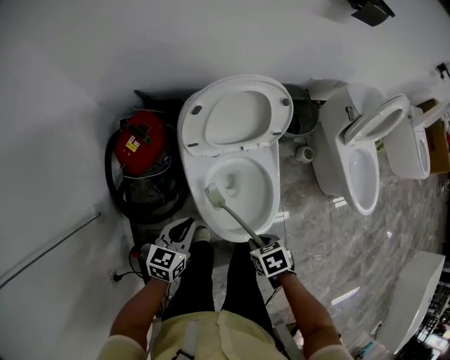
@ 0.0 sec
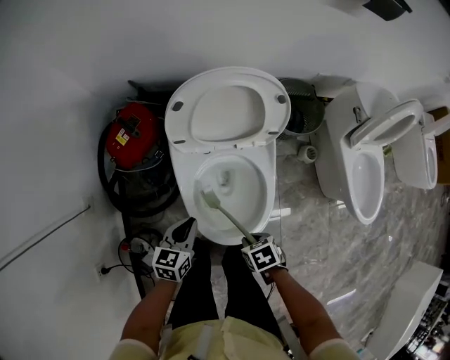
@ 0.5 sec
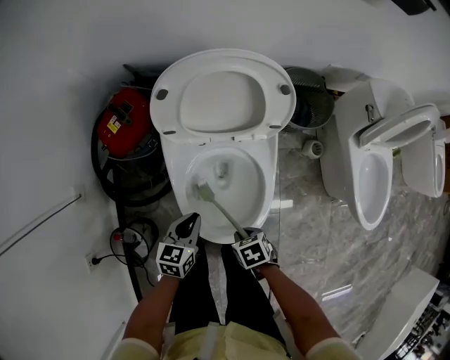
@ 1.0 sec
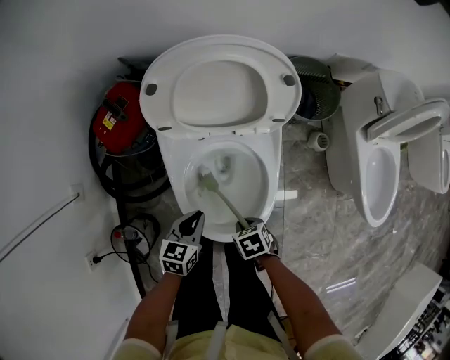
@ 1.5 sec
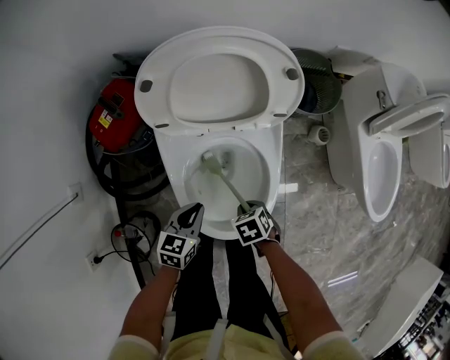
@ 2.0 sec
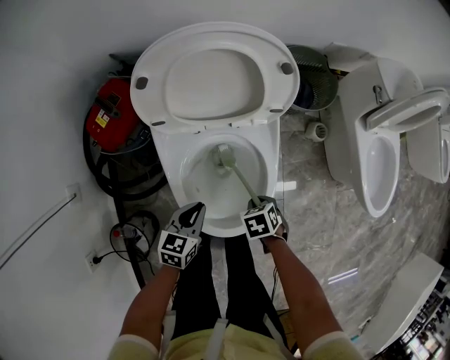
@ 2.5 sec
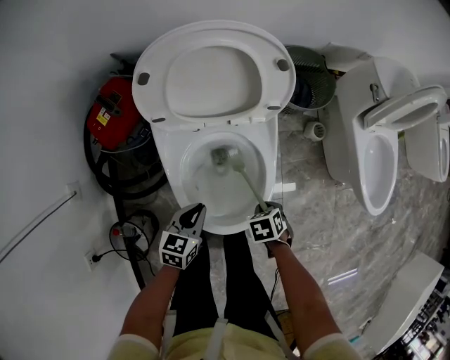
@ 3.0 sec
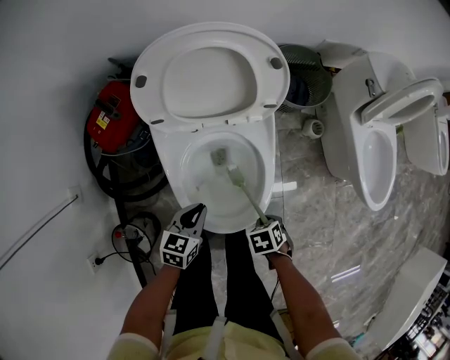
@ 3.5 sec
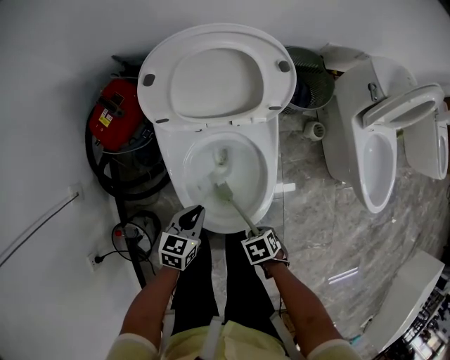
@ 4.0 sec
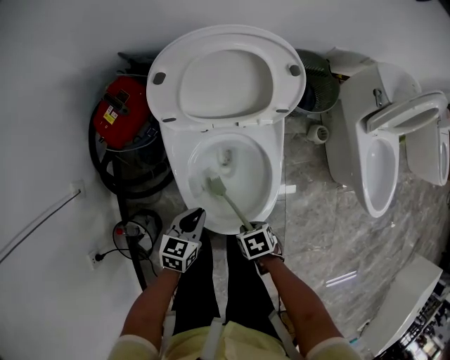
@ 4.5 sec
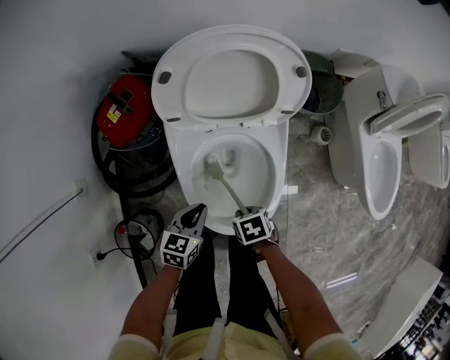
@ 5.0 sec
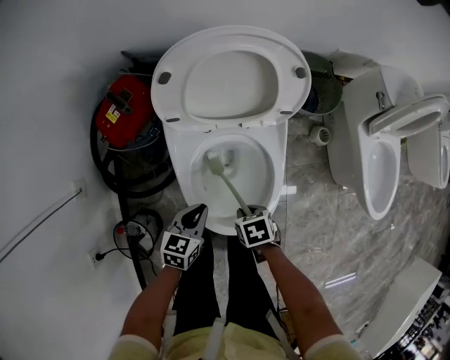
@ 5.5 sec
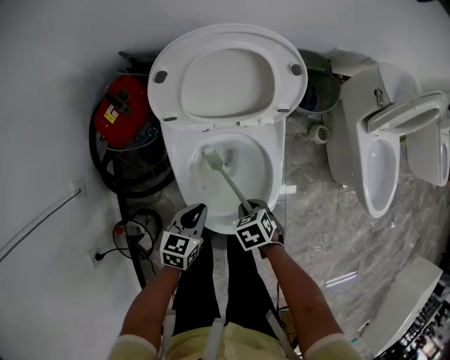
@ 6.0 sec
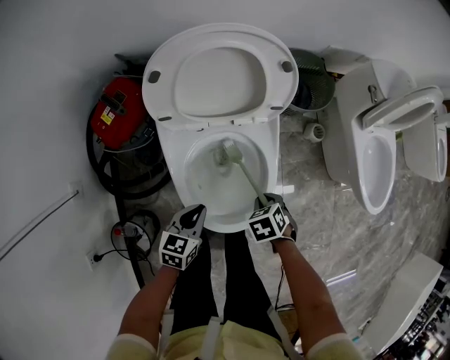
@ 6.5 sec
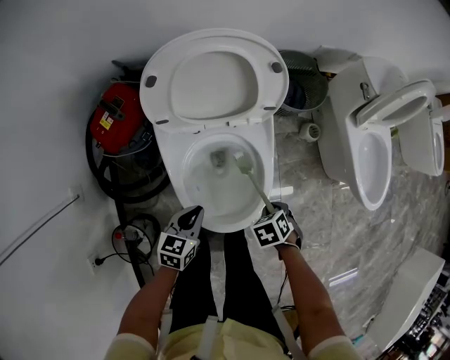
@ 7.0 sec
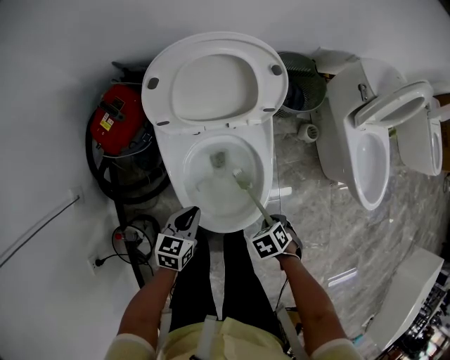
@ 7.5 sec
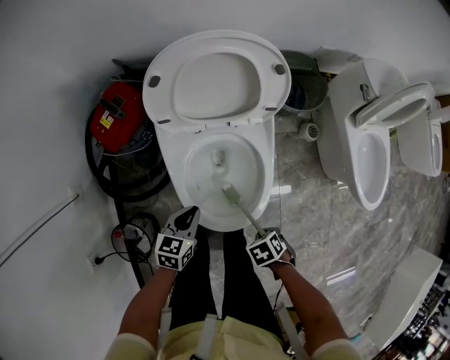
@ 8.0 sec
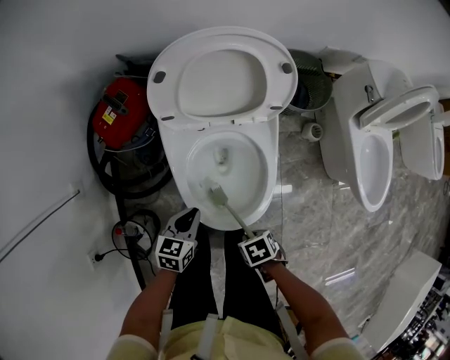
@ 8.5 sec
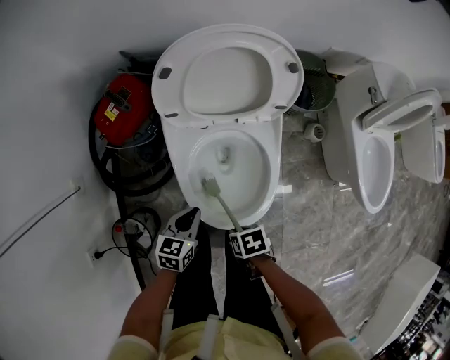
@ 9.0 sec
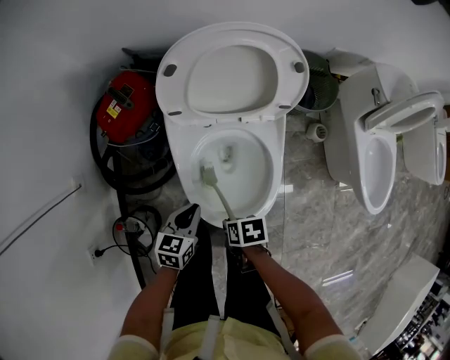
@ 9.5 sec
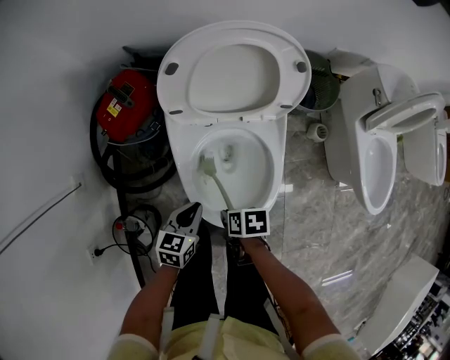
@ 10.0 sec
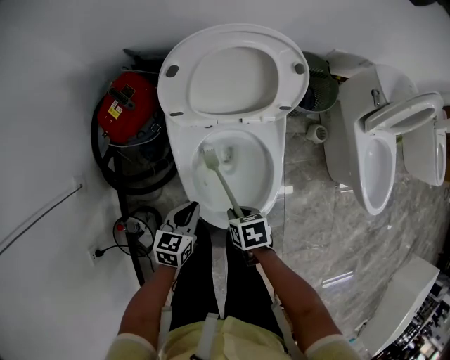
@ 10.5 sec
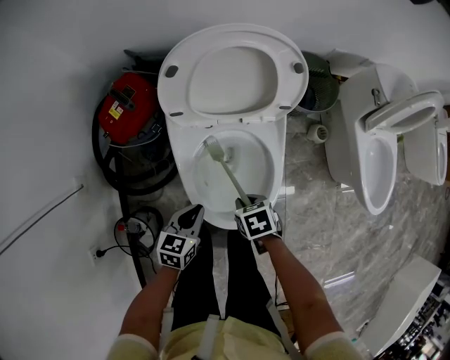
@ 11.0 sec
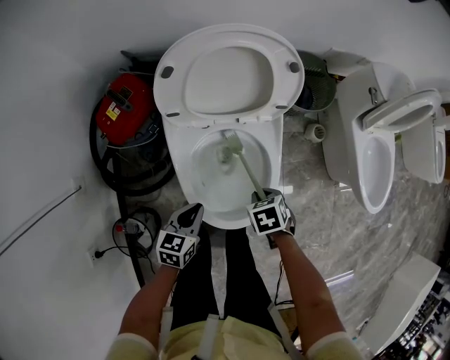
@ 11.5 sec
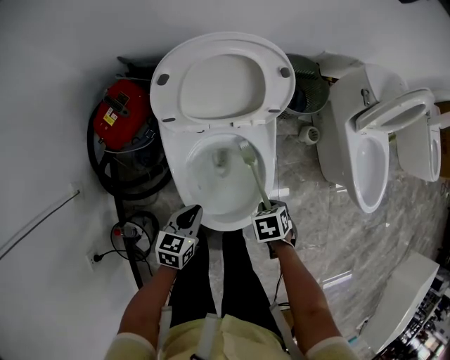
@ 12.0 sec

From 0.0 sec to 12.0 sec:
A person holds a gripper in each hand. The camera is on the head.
From 0.0 sec to 2.0 sec: The left gripper travels downward by about 15 cm.

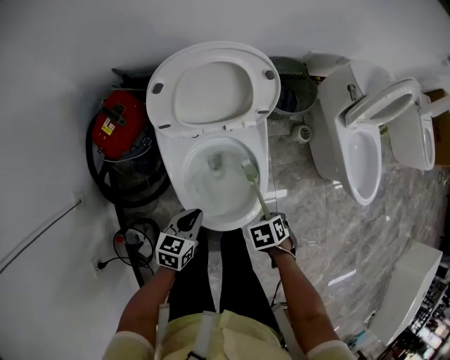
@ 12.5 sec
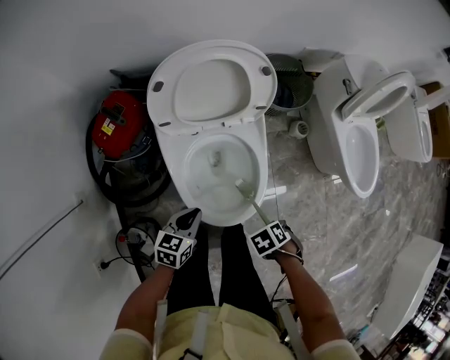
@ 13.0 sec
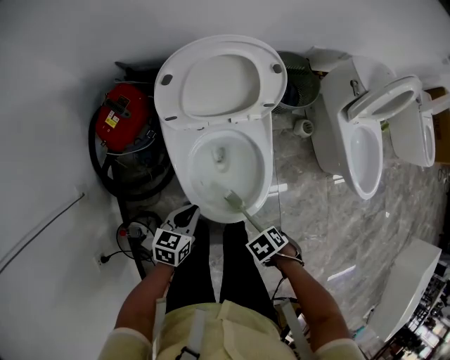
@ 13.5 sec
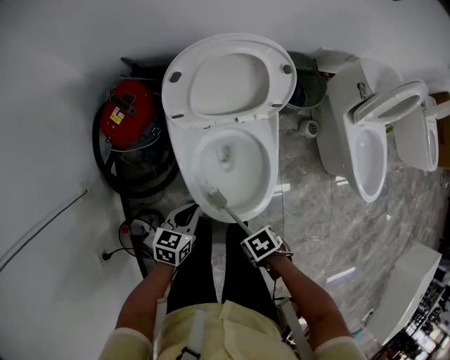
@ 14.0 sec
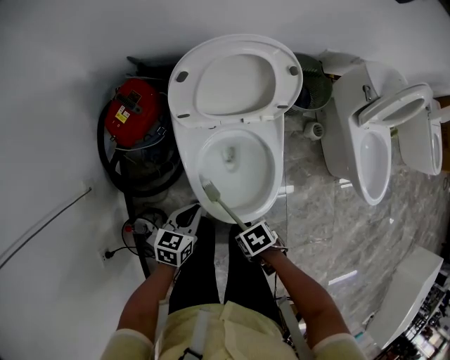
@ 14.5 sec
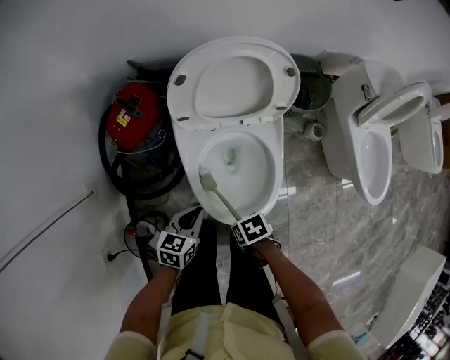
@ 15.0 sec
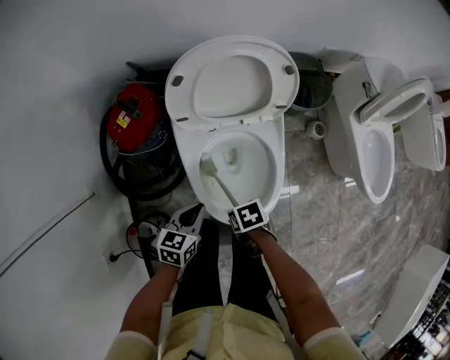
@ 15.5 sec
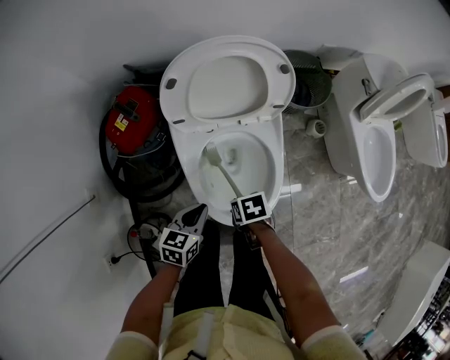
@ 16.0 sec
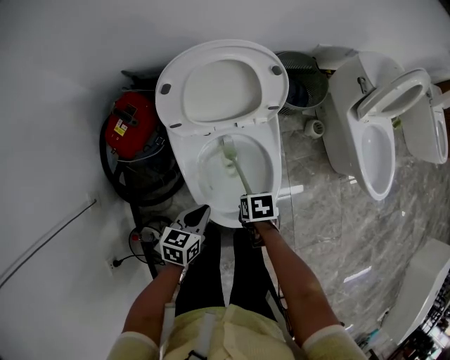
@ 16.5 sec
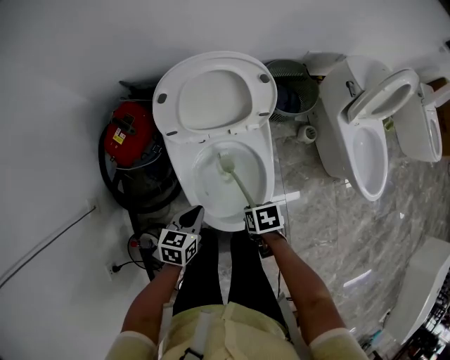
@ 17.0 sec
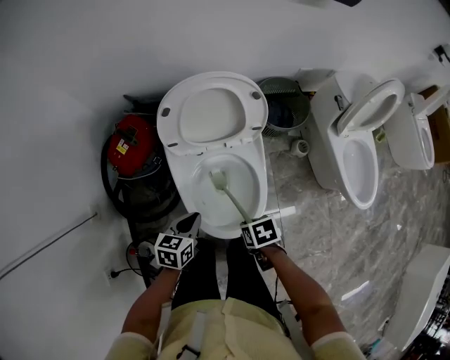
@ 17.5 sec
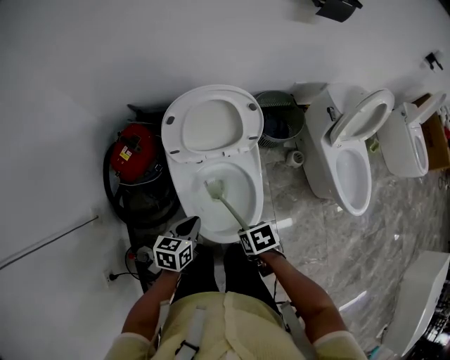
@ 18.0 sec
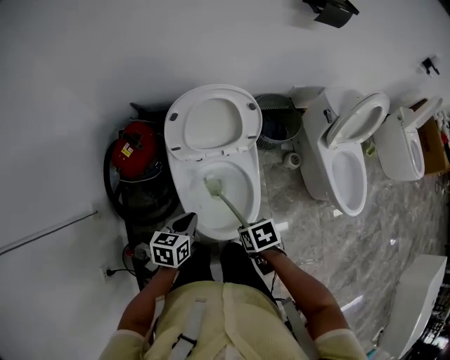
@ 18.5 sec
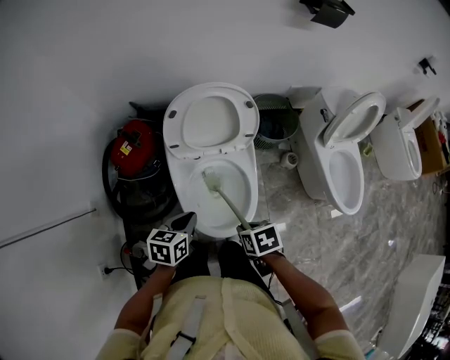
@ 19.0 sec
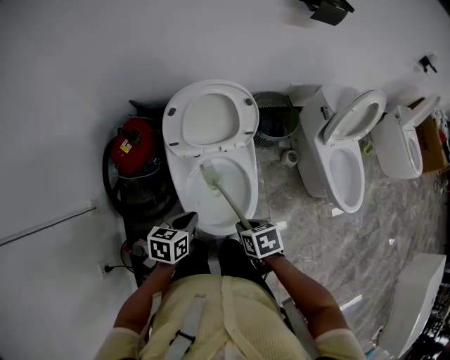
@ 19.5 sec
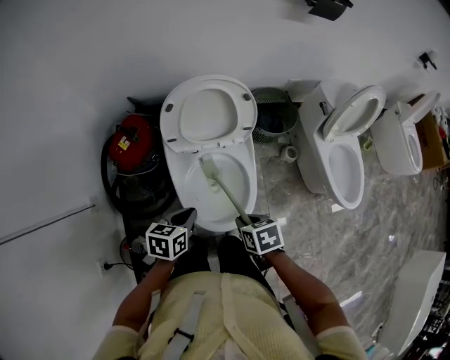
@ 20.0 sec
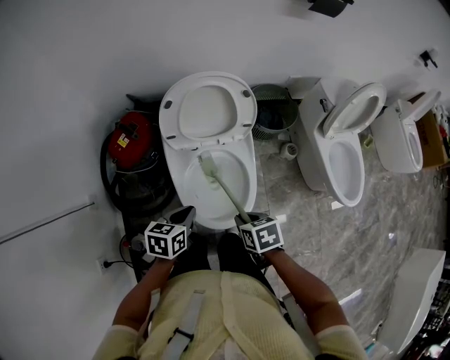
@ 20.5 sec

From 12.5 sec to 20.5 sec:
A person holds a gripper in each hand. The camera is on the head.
From 12.5 sec to 14.5 sec: The left gripper moves roughly 5 cm.
From 16.5 sec to 18.5 sec: The left gripper shifts roughly 10 cm upward.

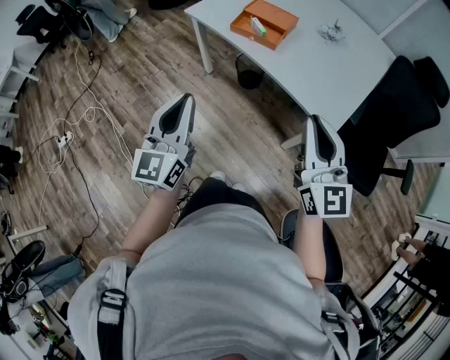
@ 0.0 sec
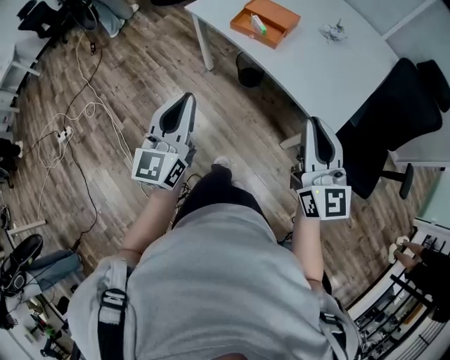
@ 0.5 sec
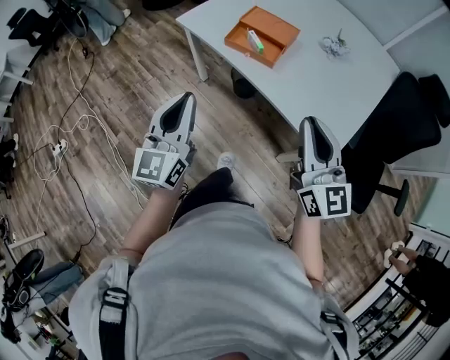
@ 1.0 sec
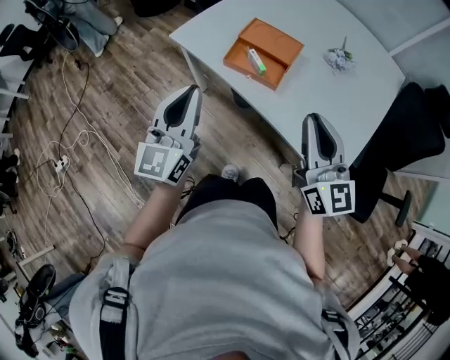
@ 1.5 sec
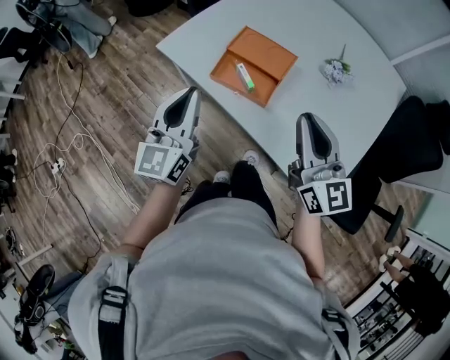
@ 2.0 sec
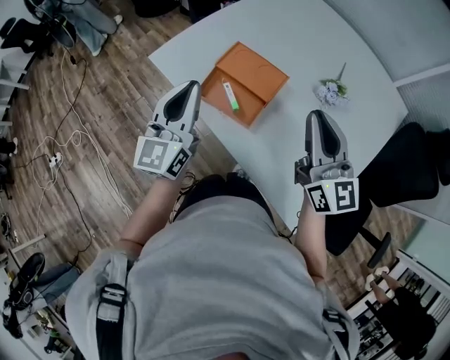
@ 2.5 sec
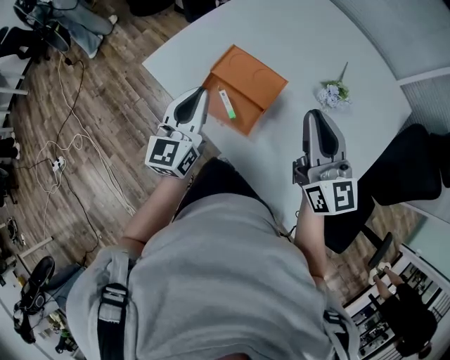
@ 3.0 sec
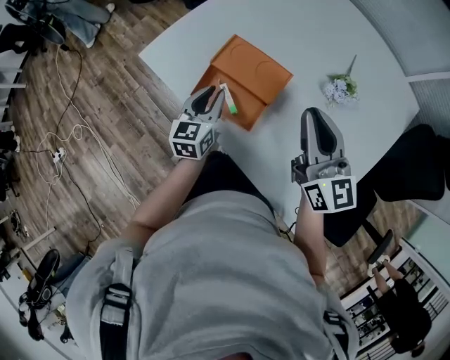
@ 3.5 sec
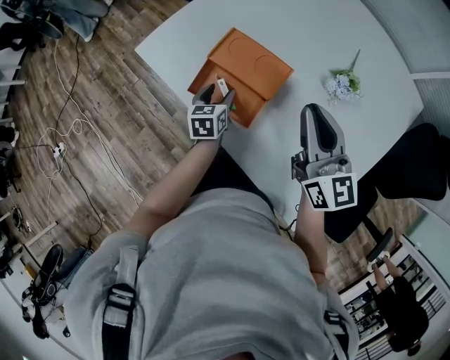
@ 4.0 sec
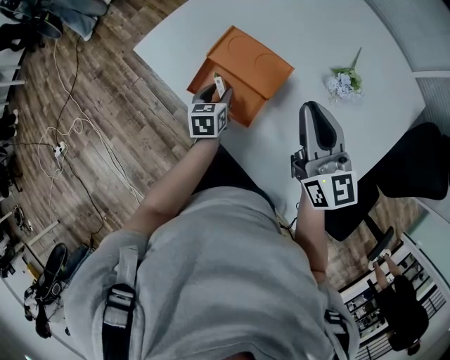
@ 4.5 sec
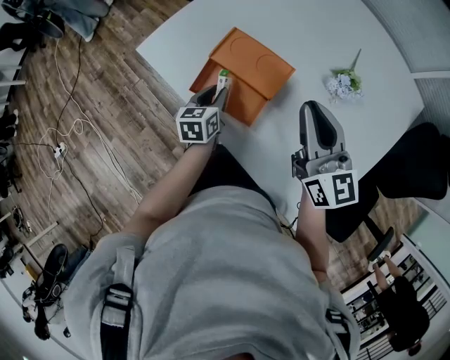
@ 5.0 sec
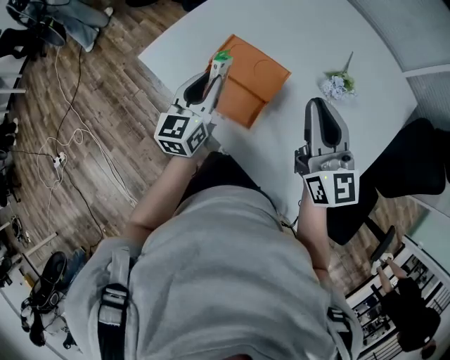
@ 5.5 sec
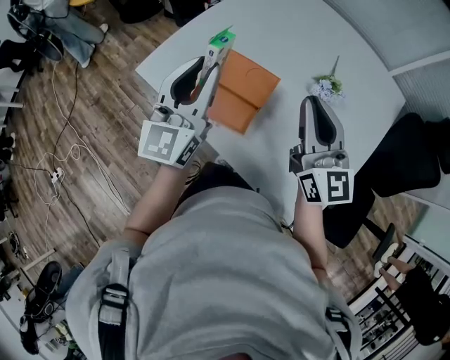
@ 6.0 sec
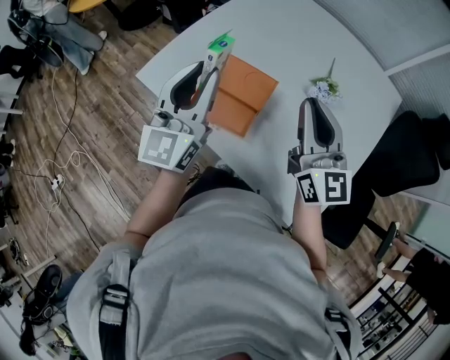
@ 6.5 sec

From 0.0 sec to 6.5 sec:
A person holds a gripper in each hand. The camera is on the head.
From 0.0 sec to 2.0 sec: The grippers both shift forward by roughly 40 cm.
From 2.0 sec to 4.5 sec: The right gripper heads forward and to the right, covering about 20 cm. The left gripper moves downward, forward and to the right, approximately 40 cm, tips its fingers downward by about 50 degrees, and opens its fingers.
From 4.5 sec to 6.5 sec: The right gripper moves upward and backward, approximately 10 cm; the left gripper shifts some 35 cm upward, tips its fingers upward by about 50 degrees, and closes up.

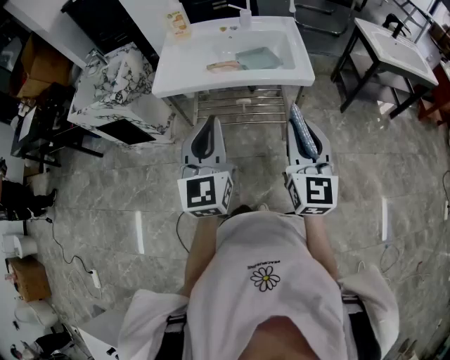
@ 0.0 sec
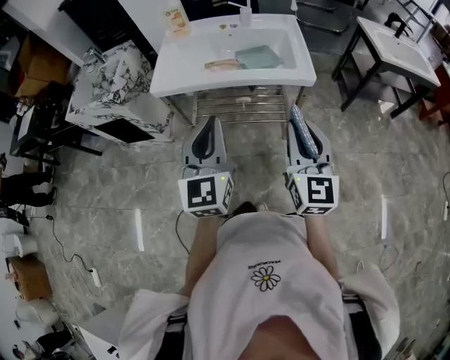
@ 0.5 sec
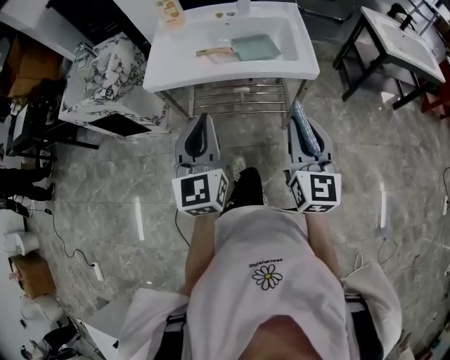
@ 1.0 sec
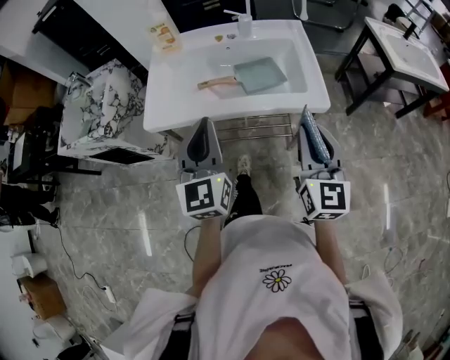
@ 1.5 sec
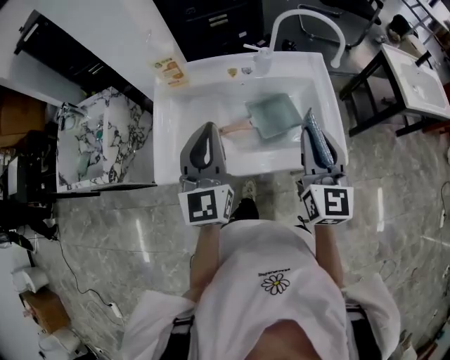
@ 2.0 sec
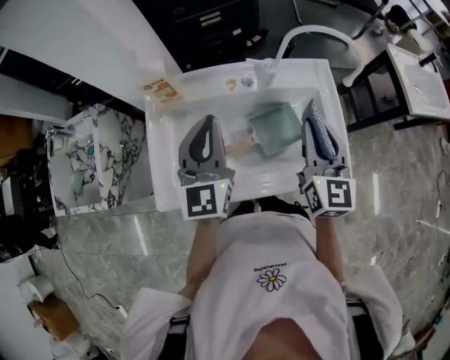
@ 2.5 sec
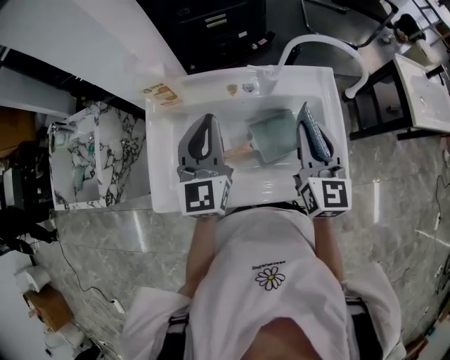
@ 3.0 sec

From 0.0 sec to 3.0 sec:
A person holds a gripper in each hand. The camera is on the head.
From 0.0 sec to 1.5 sec: Both grippers move forward, roughly 20 cm.
From 1.5 sec to 3.0 sec: The grippers both shift forward by some 35 cm.
